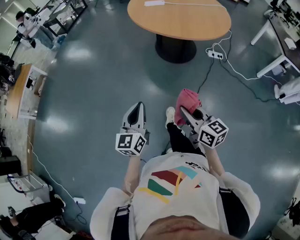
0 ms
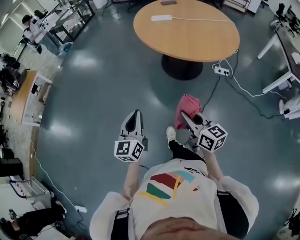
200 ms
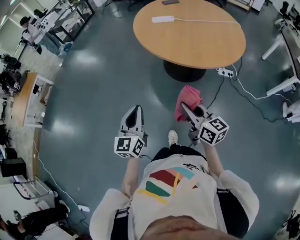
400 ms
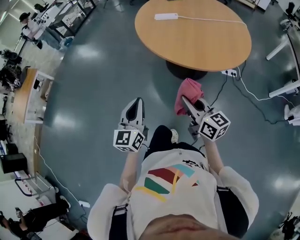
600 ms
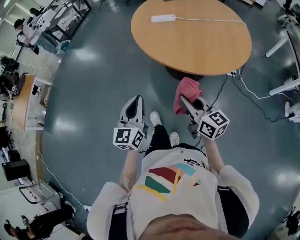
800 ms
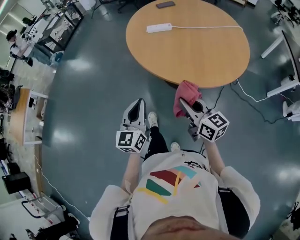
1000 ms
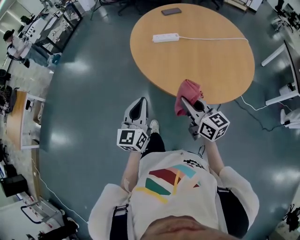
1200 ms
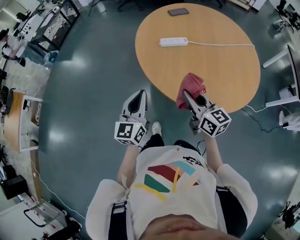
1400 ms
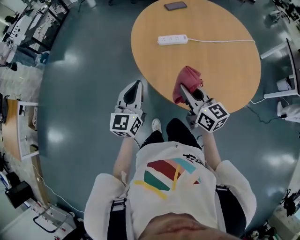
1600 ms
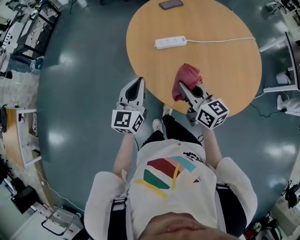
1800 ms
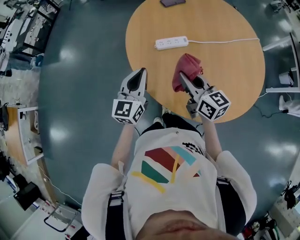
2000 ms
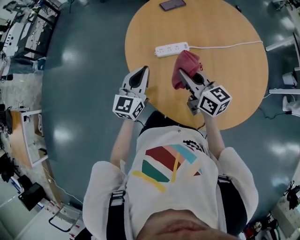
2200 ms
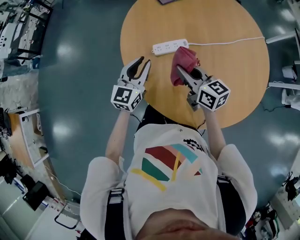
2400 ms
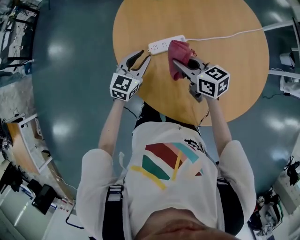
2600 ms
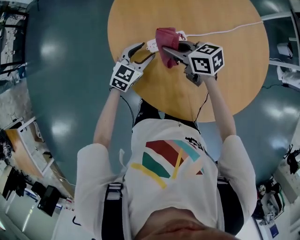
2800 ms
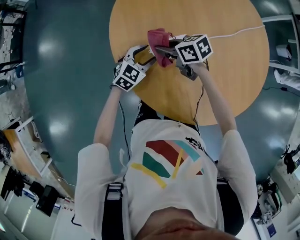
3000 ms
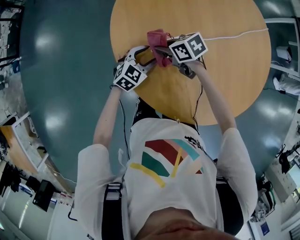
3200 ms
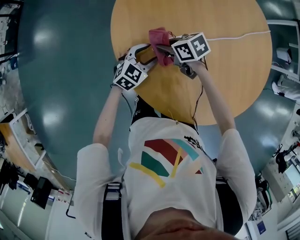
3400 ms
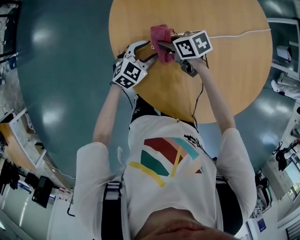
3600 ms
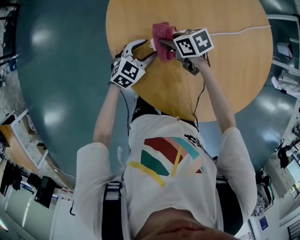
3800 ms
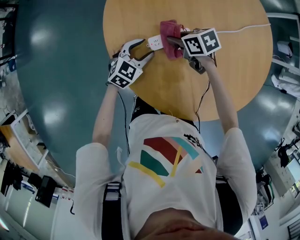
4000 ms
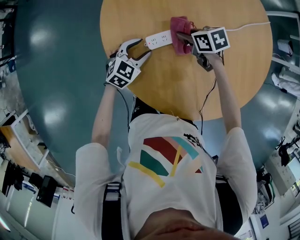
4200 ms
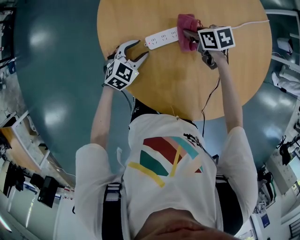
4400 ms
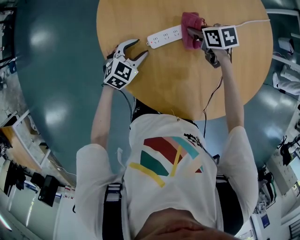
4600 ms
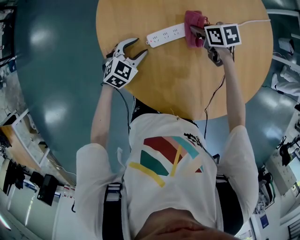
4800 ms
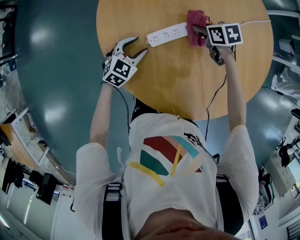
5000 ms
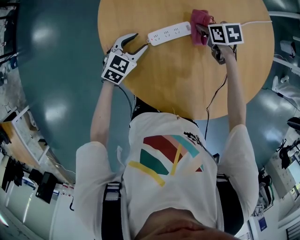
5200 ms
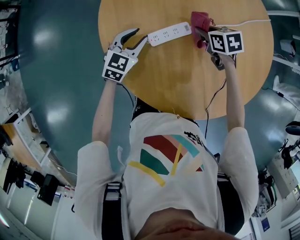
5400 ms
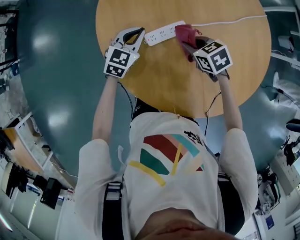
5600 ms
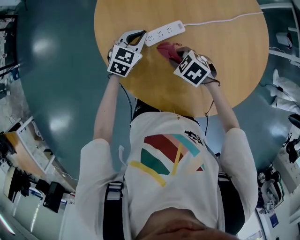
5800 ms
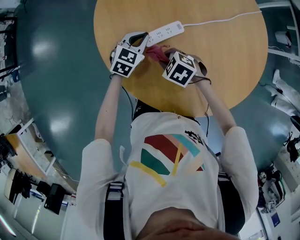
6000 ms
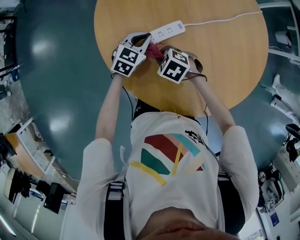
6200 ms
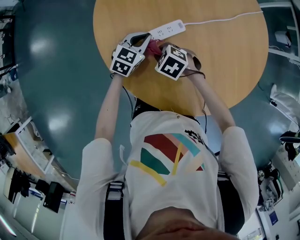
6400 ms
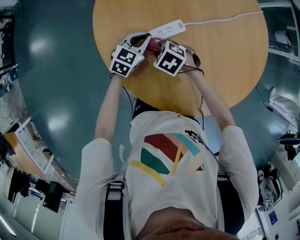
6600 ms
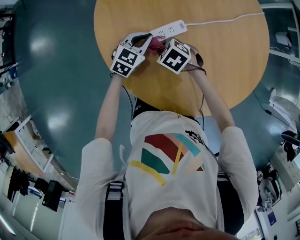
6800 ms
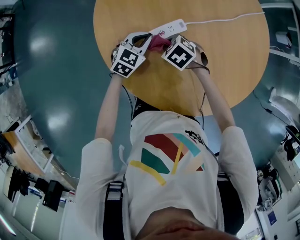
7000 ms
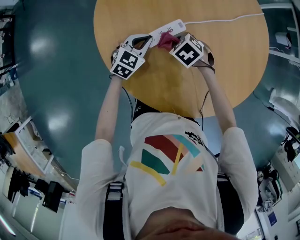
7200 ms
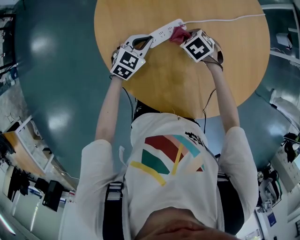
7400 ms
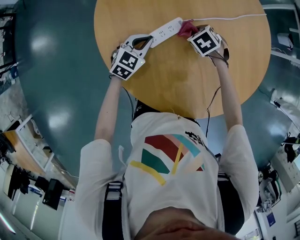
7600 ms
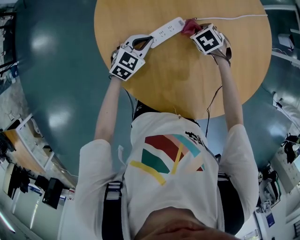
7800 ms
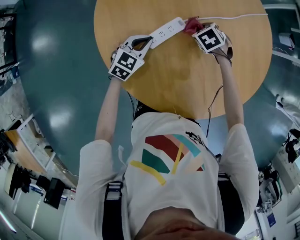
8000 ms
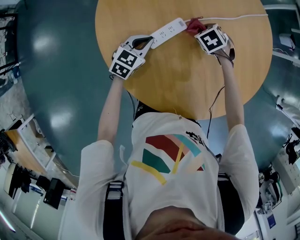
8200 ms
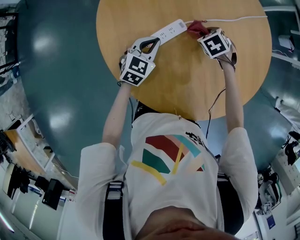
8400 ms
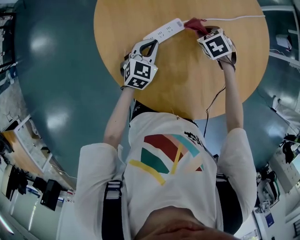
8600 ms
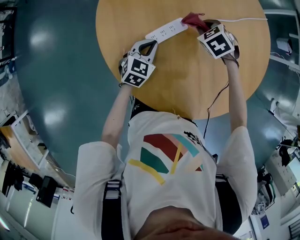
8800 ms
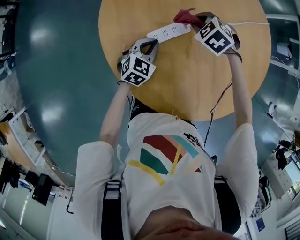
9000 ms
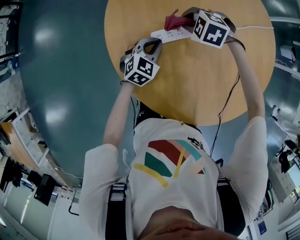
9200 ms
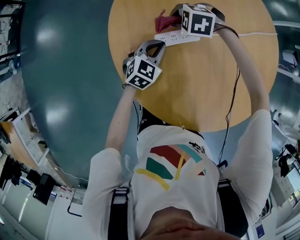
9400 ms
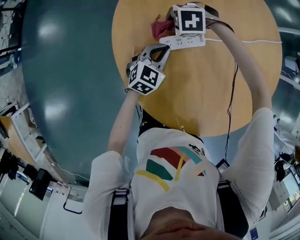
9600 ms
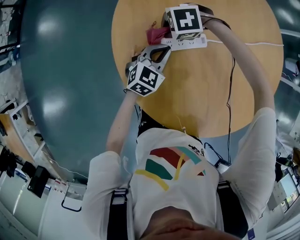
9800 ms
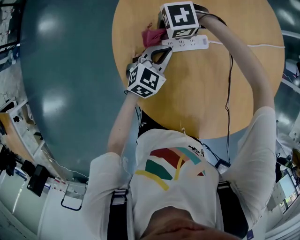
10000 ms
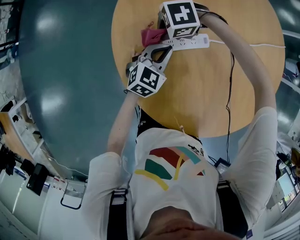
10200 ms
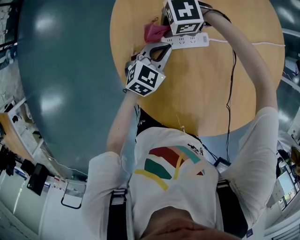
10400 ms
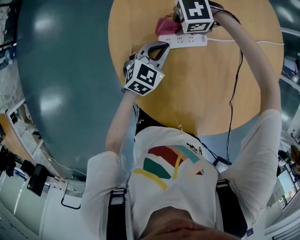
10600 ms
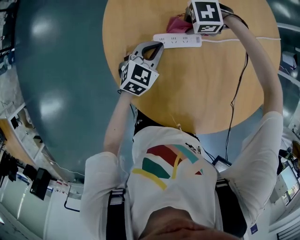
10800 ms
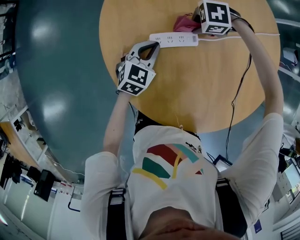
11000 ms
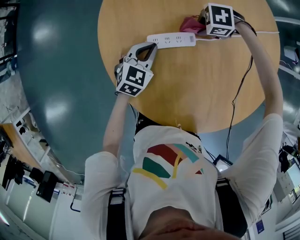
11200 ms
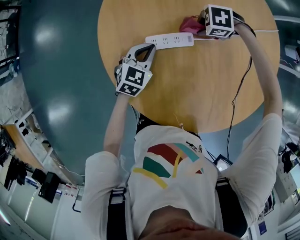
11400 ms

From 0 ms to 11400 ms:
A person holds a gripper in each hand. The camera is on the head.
From 0 ms to 1400 ms: The pair of grippers is taken forward, some 60 cm.
From 1400 ms to 2800 ms: The two grippers go approximately 40 cm forward. The right gripper swivels approximately 30 degrees. The left gripper changes its angle by roughly 50 degrees, and opens.
From 2800 ms to 4200 ms: The left gripper travels downward by approximately 5 cm; the right gripper travels downward by about 10 cm, and rotates about 30 degrees.
From 4200 ms to 5600 ms: The left gripper moves upward and forward, roughly 10 cm, and closes its fingers. The right gripper travels backward by roughly 5 cm.
From 5600 ms to 7200 ms: The right gripper travels downward by roughly 5 cm, reaches approximately 10 cm to the left, then returns, and swivels some 20 degrees; the left gripper moves roughly 5 cm.
From 7200 ms to 8600 ms: The right gripper shifts by some 15 cm.
From 8600 ms to 10000 ms: The right gripper moves about 25 cm, and swivels approximately 80 degrees.
From 10000 ms to 11400 ms: The right gripper ends up roughly 20 cm from where it was, and rotates roughly 20 degrees.

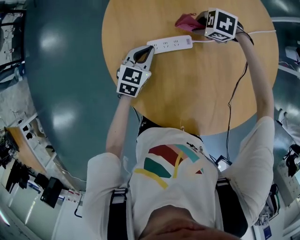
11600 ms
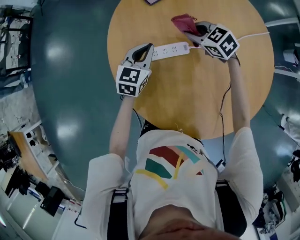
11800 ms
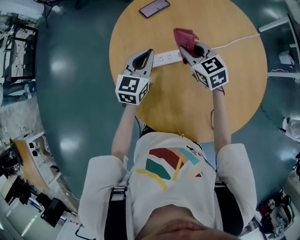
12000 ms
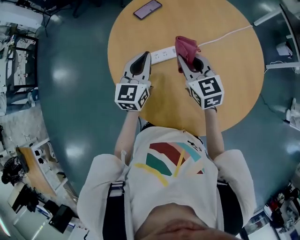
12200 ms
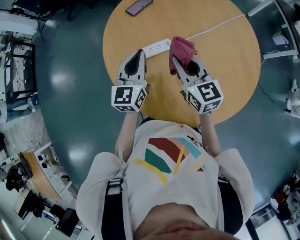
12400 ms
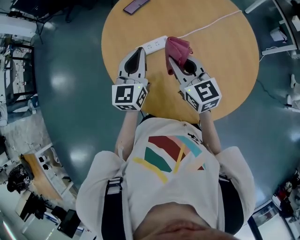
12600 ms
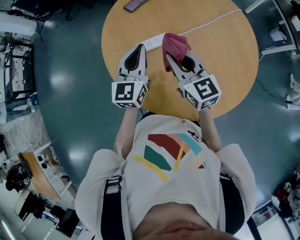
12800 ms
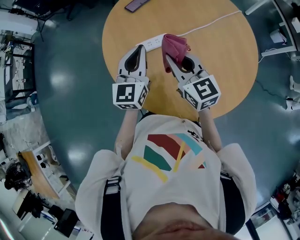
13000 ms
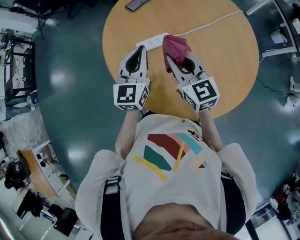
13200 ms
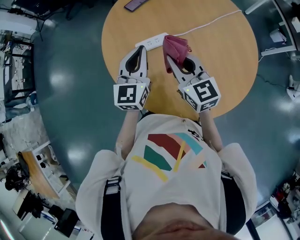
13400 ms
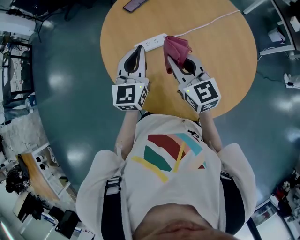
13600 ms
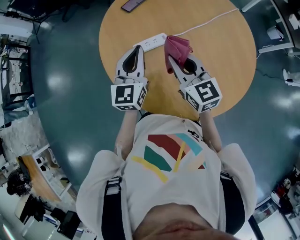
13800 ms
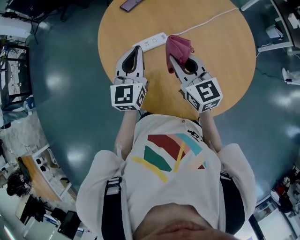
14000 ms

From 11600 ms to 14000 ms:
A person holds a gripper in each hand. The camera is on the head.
From 11600 ms to 12800 ms: The two grippers go approximately 20 cm upward. The right gripper tilts its fingers approximately 60 degrees upward, while the left gripper changes its angle by approximately 30 degrees.
From 12800 ms to 14000 ms: The grippers make only small movements.

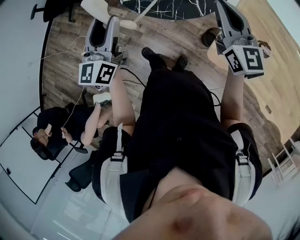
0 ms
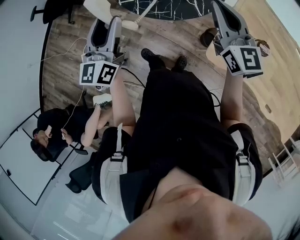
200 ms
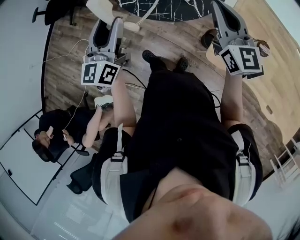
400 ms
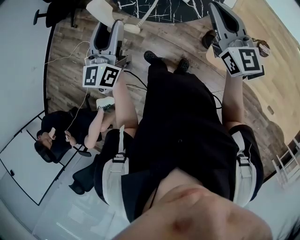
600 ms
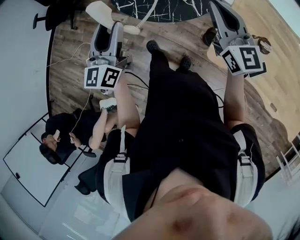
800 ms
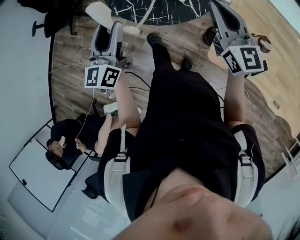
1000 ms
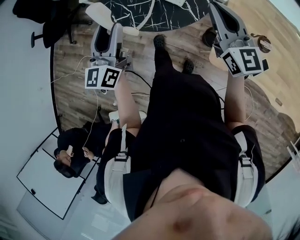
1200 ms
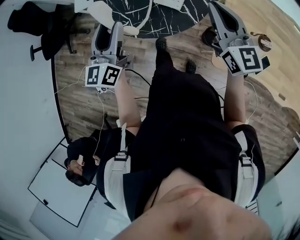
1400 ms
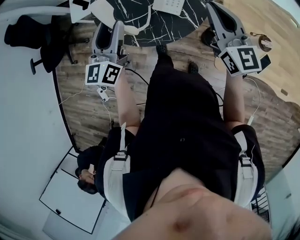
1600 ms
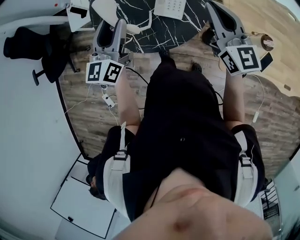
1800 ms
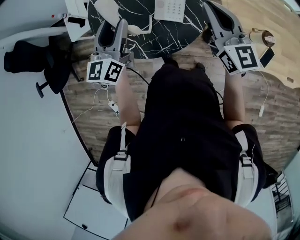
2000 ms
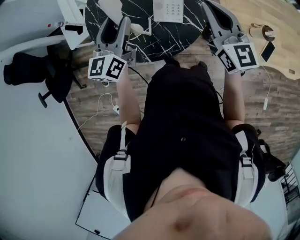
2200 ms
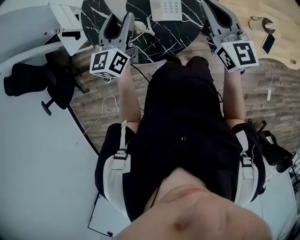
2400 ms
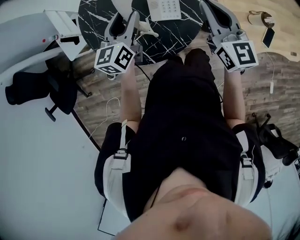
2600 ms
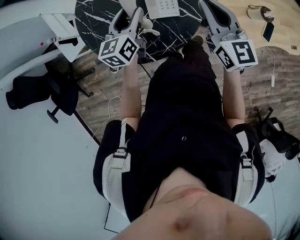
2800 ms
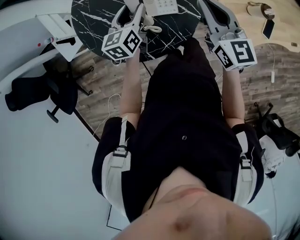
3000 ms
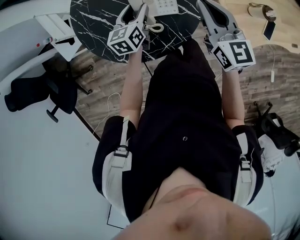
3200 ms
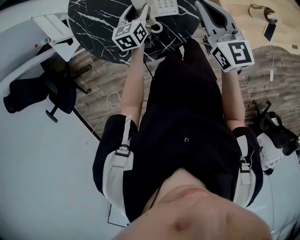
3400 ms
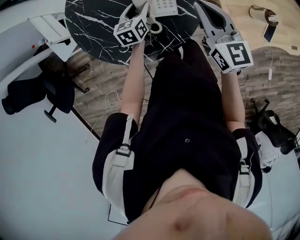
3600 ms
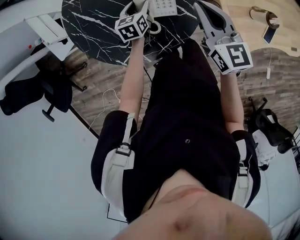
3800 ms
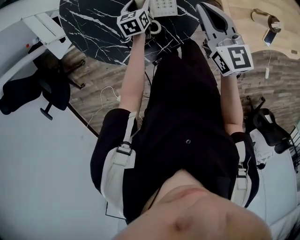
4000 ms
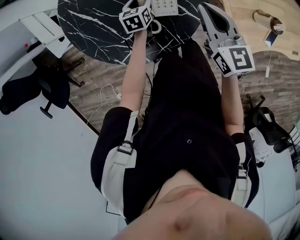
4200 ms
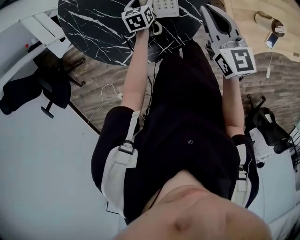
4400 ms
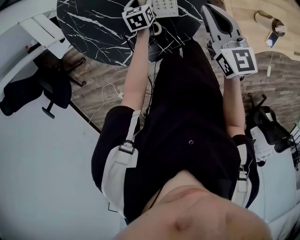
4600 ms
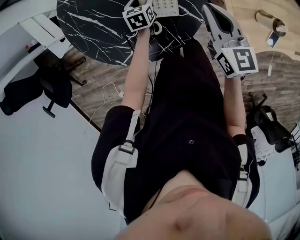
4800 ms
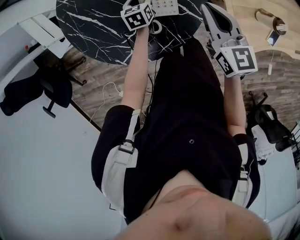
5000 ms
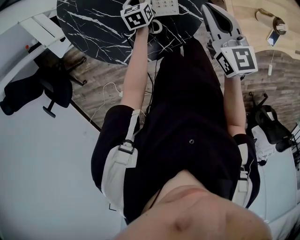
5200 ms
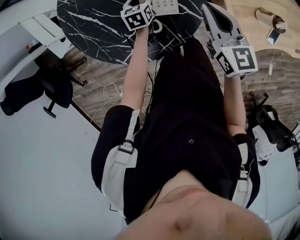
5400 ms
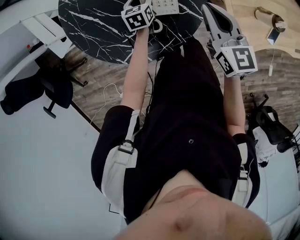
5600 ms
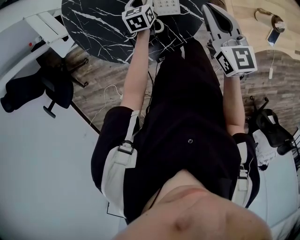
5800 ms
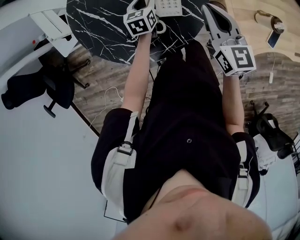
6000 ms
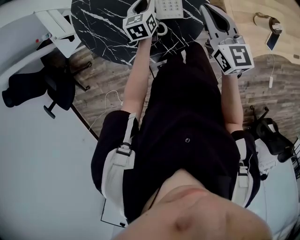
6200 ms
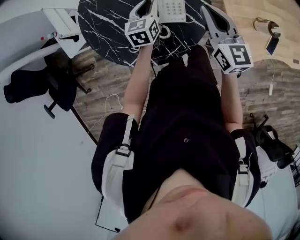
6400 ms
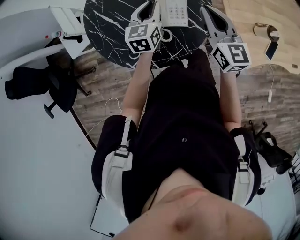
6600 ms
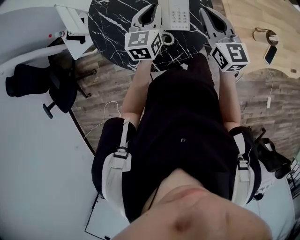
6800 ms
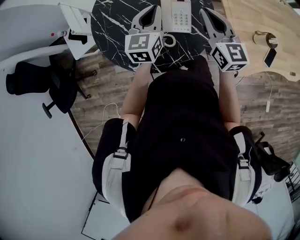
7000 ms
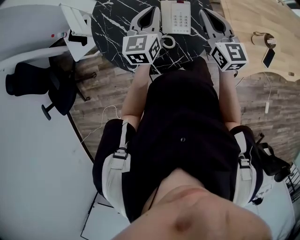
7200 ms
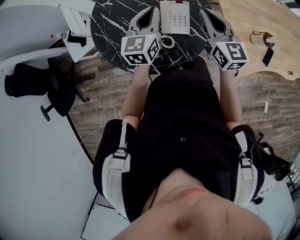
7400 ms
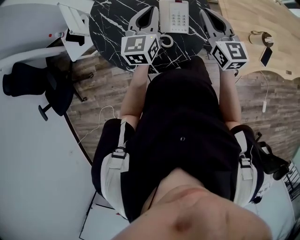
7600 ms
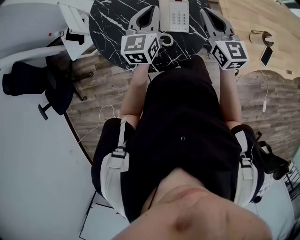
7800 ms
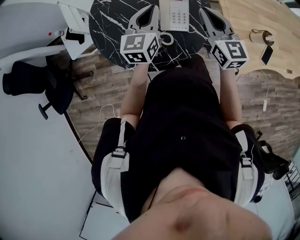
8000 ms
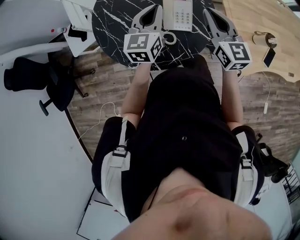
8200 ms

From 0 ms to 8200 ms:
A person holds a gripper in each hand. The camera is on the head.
From 0 ms to 1600 ms: The left gripper moves forward, approximately 20 cm, and changes its angle by some 20 degrees. The right gripper moves forward, about 10 cm.
From 1600 ms to 3200 ms: The right gripper ends up approximately 10 cm from where it was, and turns by some 30 degrees; the left gripper changes place by approximately 25 cm, and rotates approximately 40 degrees.
From 3200 ms to 5000 ms: The right gripper heads downward and forward, covering roughly 10 cm; the left gripper shifts about 20 cm downward and forward, and swivels approximately 20 degrees.
From 5000 ms to 6600 ms: The left gripper heads upward, covering approximately 20 cm, turns by some 30 degrees, and closes its fingers; the right gripper shifts roughly 5 cm upward.
From 6600 ms to 8200 ms: The left gripper goes about 10 cm upward.

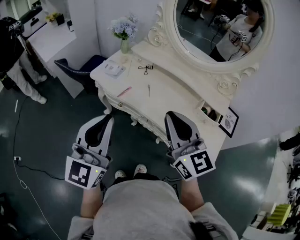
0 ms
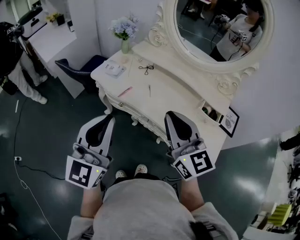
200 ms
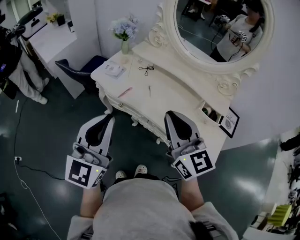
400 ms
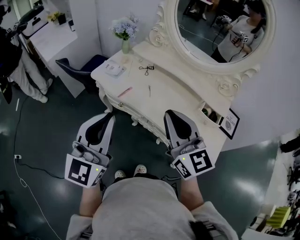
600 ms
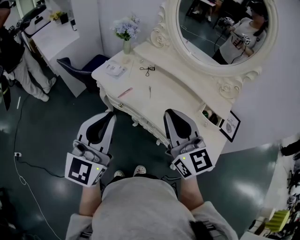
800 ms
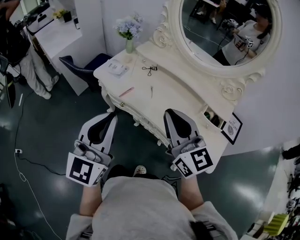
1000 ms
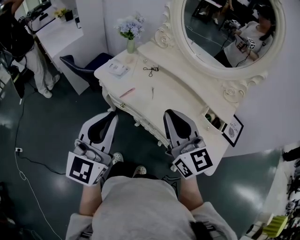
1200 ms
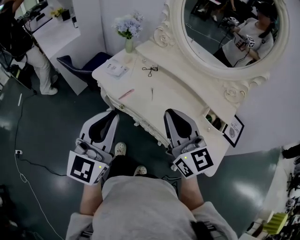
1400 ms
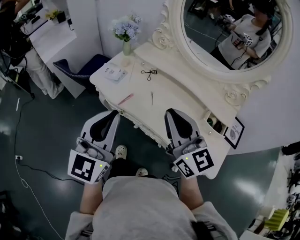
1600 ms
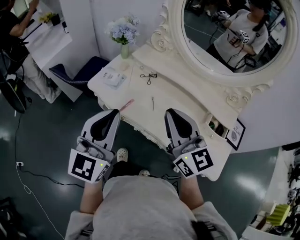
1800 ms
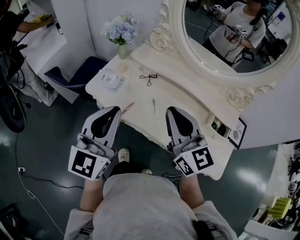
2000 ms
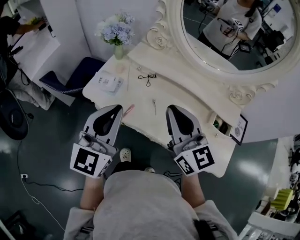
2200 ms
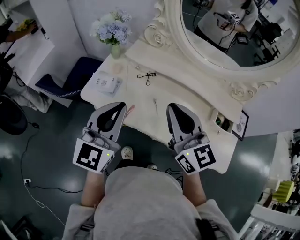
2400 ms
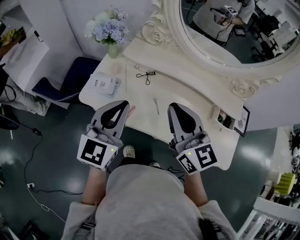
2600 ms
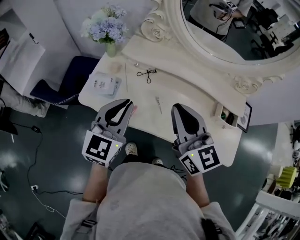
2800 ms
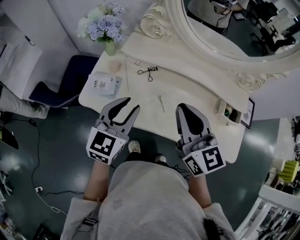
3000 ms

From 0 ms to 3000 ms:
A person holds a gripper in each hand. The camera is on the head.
From 0 ms to 1600 ms: Both grippers move forward, roughly 10 cm.
From 1600 ms to 3000 ms: The right gripper shifts about 15 cm forward, and rotates roughly 20 degrees. Meanwhile the left gripper heads forward and downward, covering approximately 25 cm, changes its angle by some 30 degrees, and opens up.
